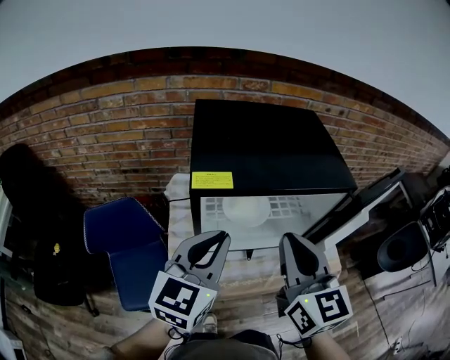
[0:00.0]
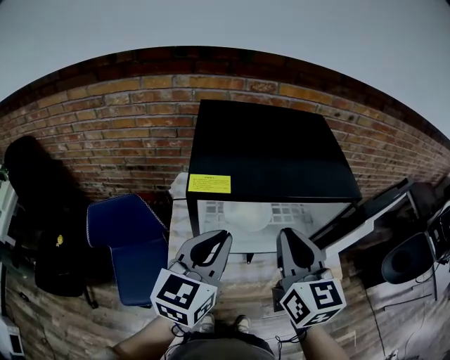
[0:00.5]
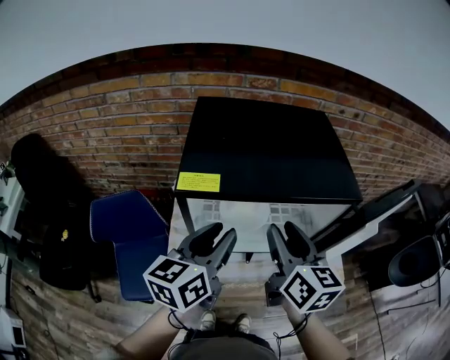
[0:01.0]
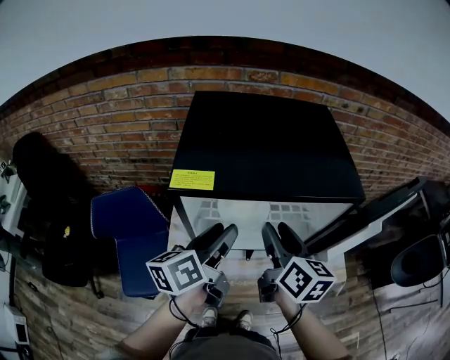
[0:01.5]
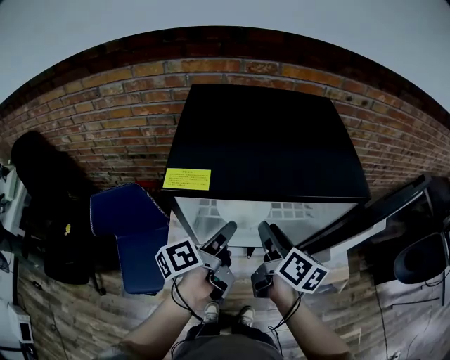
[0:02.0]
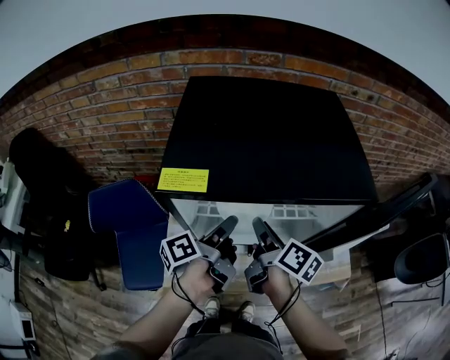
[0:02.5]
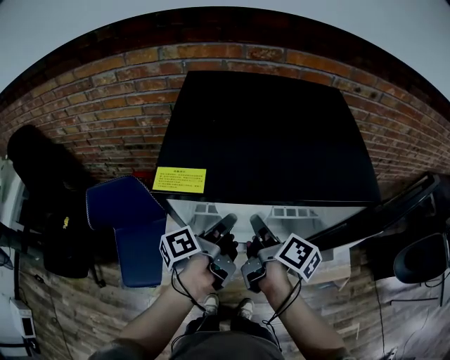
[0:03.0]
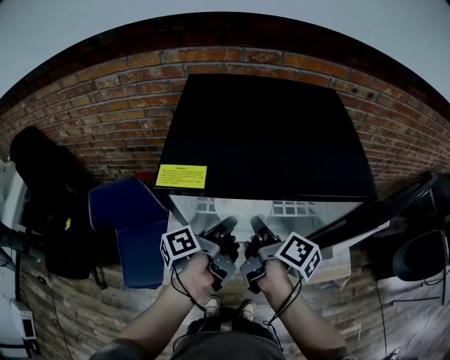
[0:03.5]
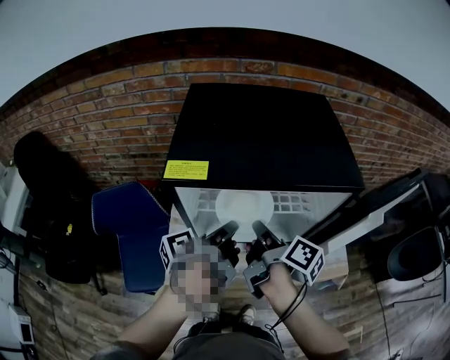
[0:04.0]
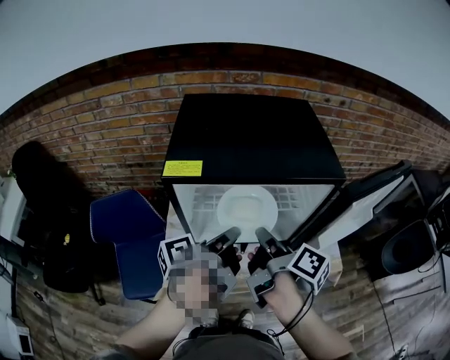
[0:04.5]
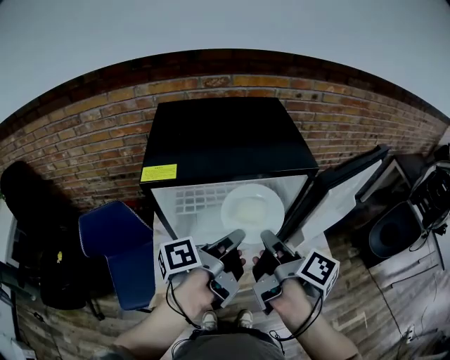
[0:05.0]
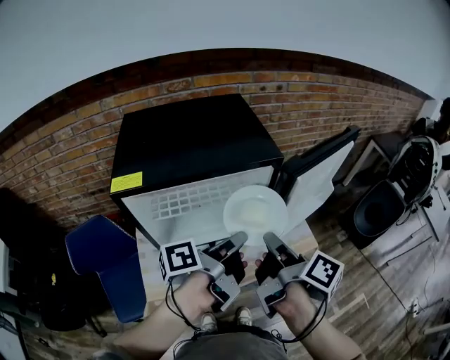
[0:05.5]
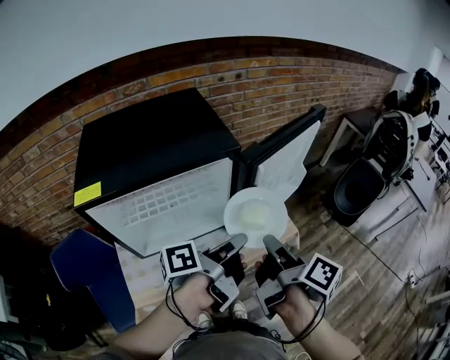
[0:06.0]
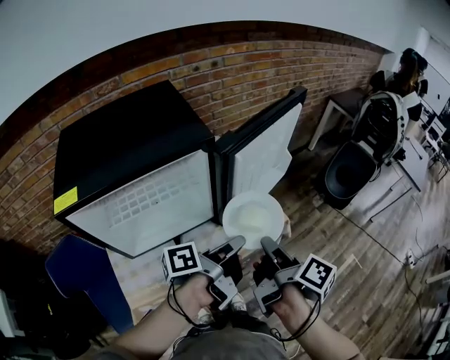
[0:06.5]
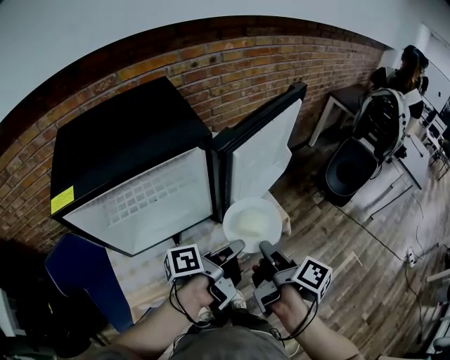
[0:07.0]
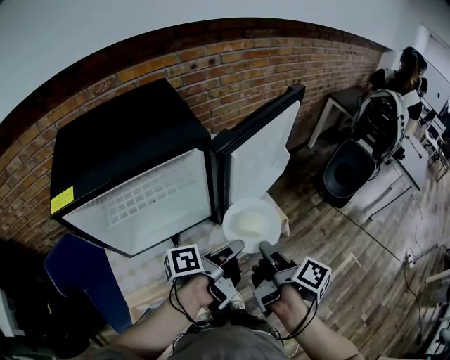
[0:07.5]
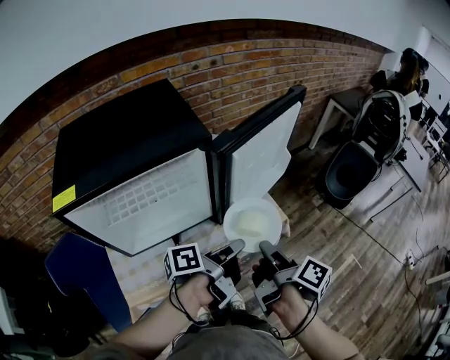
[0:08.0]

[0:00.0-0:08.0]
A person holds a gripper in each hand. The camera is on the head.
0:00.0 to 0:02.0: The two grippers go about 20 cm downward and forward. The left gripper twists some 70 degrees counterclockwise, seen from behind, and opens. Meanwhile the right gripper rotates around the line of its fingers by roughly 50 degrees, clockwise from behind, and opens.
0:02.0 to 0:04.0: The right gripper changes its angle by about 30 degrees, and closes up. The left gripper closes its fingers.
0:04.0 to 0:06.0: The right gripper shifts by roughly 30 cm, and swivels approximately 30 degrees, while the left gripper ends up some 25 cm from where it was, and turns by some 30 degrees.
0:06.0 to 0:08.0: Both grippers move downward and to the right, roughly 10 cm.

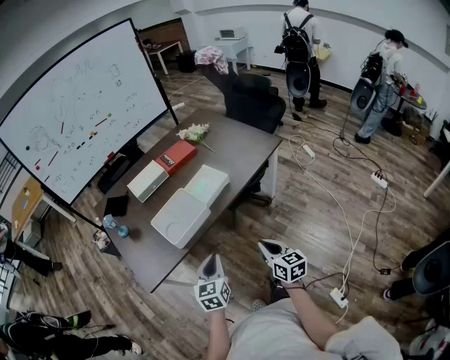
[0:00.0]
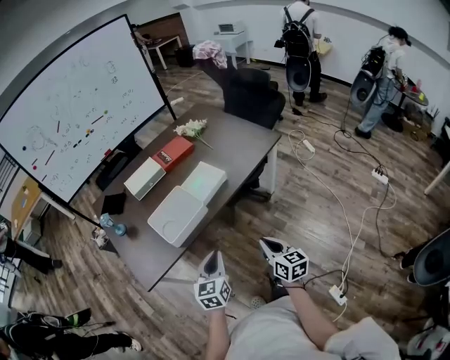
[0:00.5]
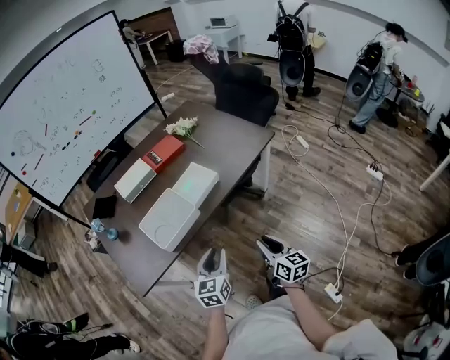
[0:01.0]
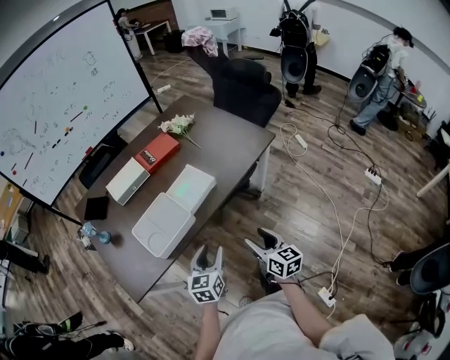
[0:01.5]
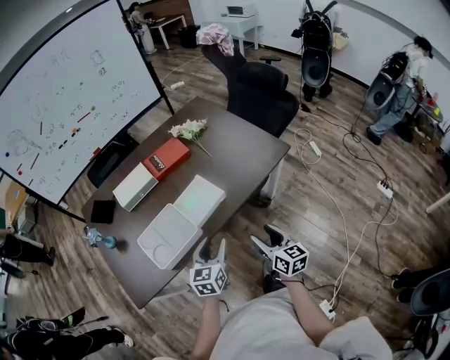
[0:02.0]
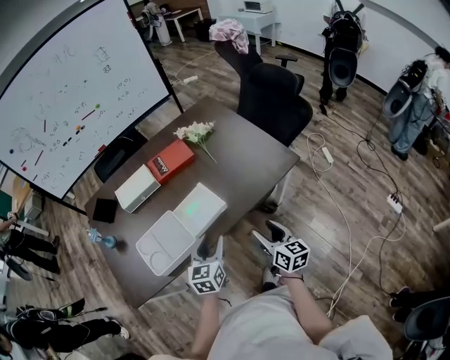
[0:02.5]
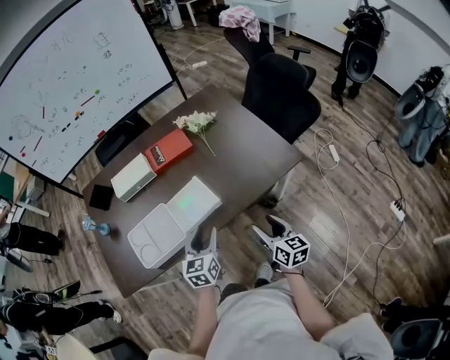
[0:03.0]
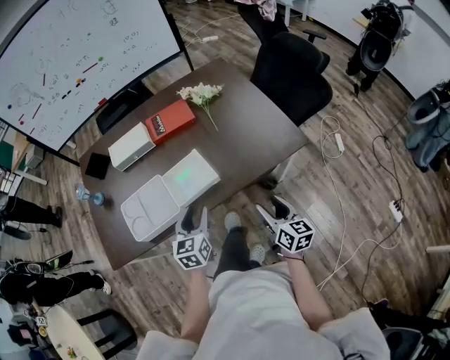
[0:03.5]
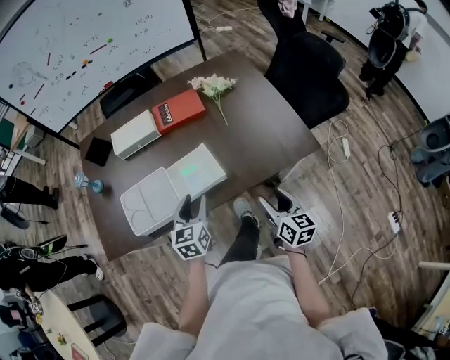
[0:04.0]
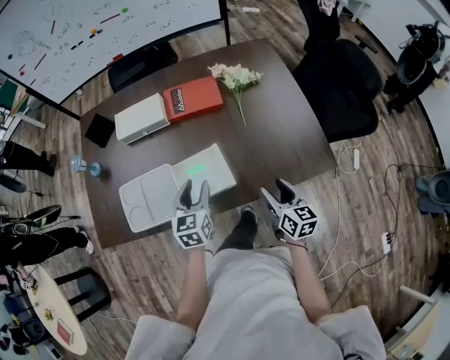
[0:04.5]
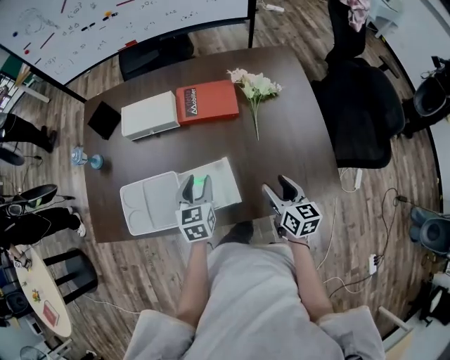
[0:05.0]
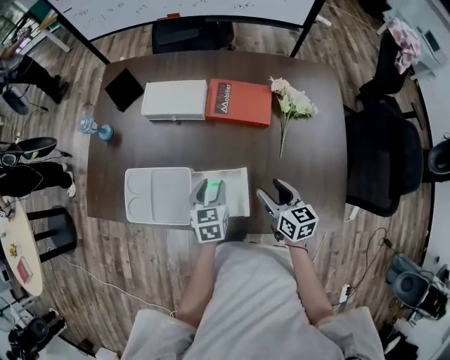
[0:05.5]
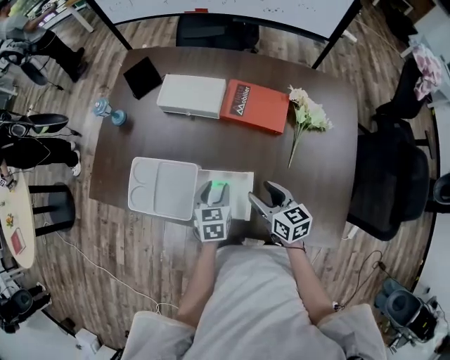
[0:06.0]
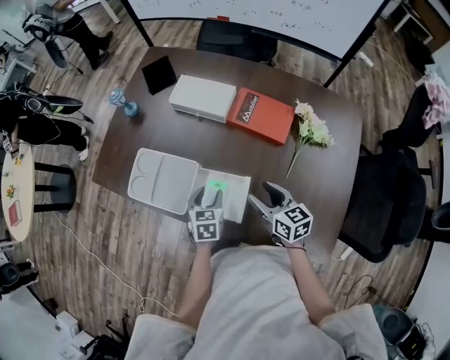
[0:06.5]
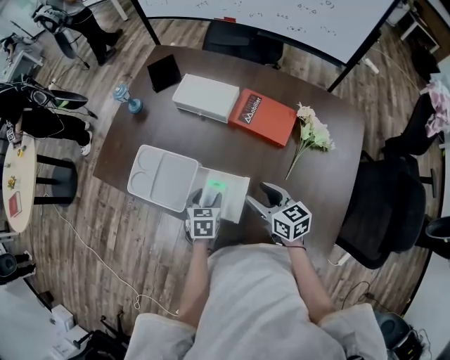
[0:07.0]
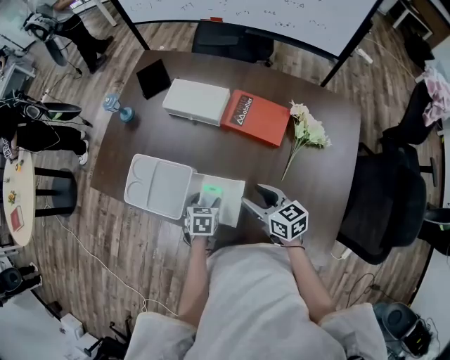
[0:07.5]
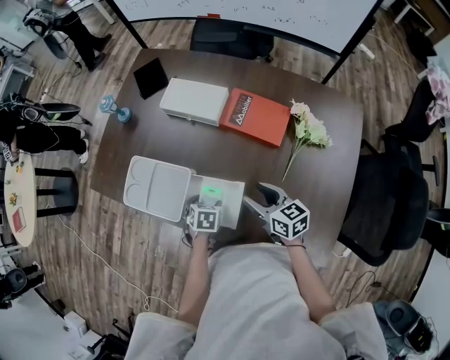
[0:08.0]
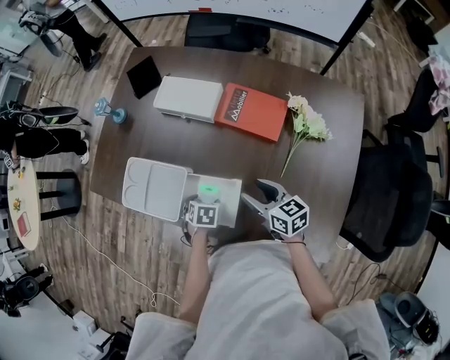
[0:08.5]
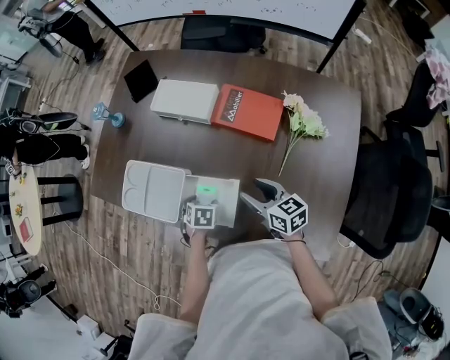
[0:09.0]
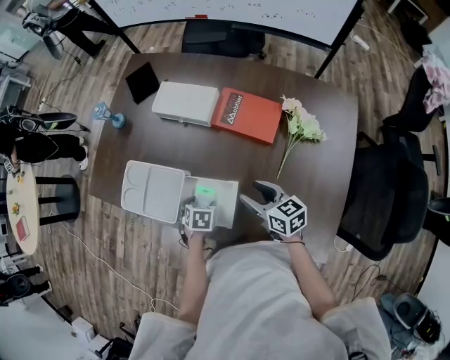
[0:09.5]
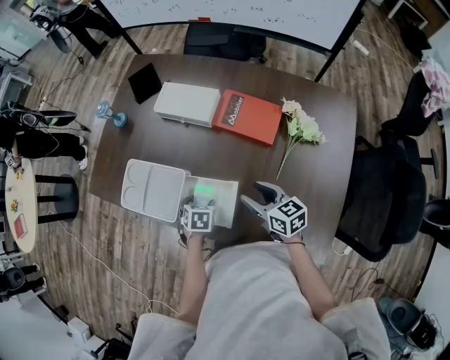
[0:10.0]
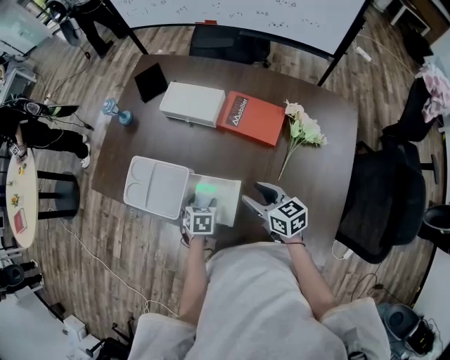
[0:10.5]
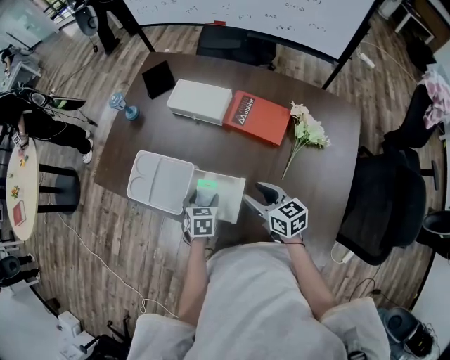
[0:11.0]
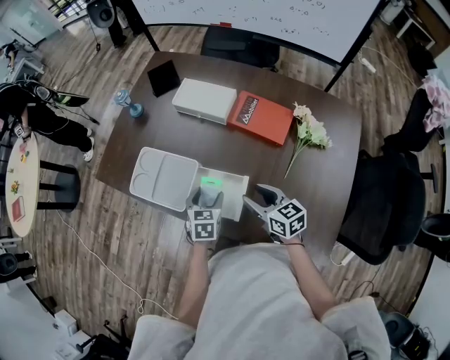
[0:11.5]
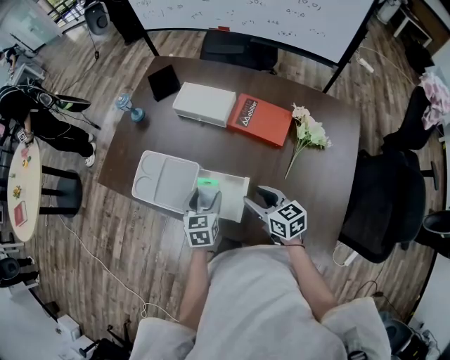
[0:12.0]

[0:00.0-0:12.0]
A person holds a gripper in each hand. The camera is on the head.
0:00.0 to 0:02.0: The grippers both shift forward and to the right by approximately 25 cm. The left gripper opens its fingers; the right gripper opens.
0:02.0 to 0:04.0: The left gripper travels forward by approximately 15 cm, and turns by roughly 30 degrees. The right gripper goes about 20 cm forward and to the right.
0:04.0 to 0:06.0: The left gripper shifts by approximately 20 cm, and rotates approximately 30 degrees, while the right gripper changes place by about 30 cm, and rotates roughly 50 degrees.
0:06.0 to 0:08.0: The left gripper shifts approximately 5 cm downward, swivels approximately 30 degrees, and opens.
0:08.0 to 0:10.0: The grippers stay close to where they were, moving slightly.
0:10.0 to 0:12.0: The right gripper moves about 5 cm; the left gripper is displaced upward by about 10 cm, and angles its fingers upward, by about 30 degrees.

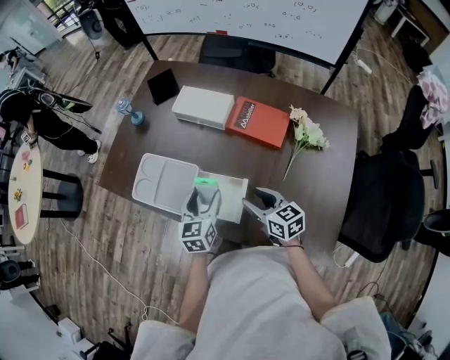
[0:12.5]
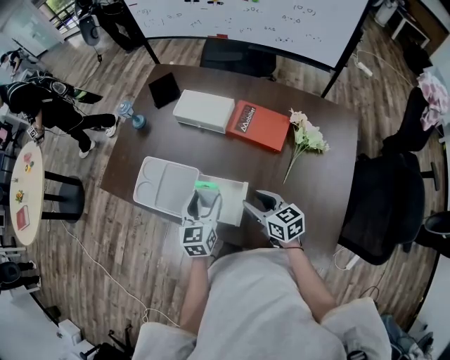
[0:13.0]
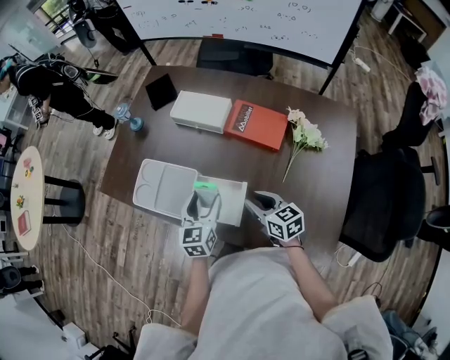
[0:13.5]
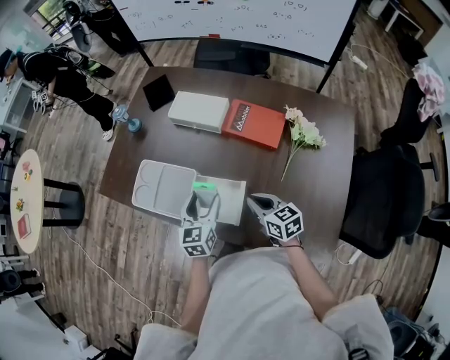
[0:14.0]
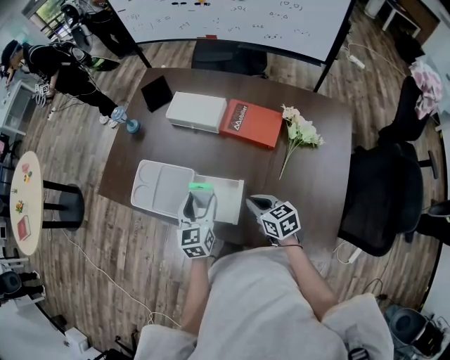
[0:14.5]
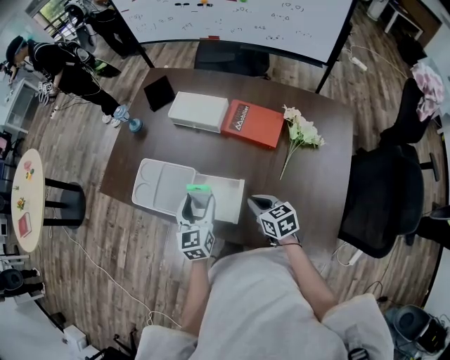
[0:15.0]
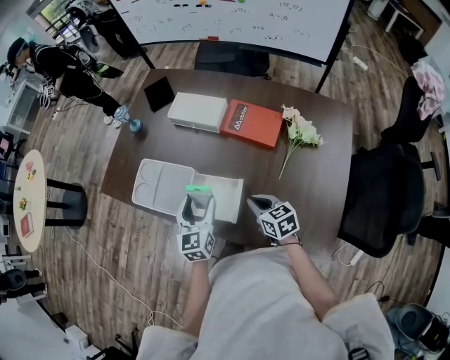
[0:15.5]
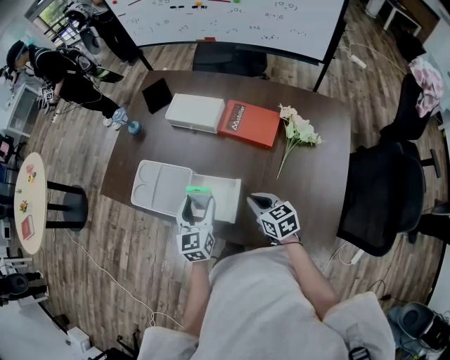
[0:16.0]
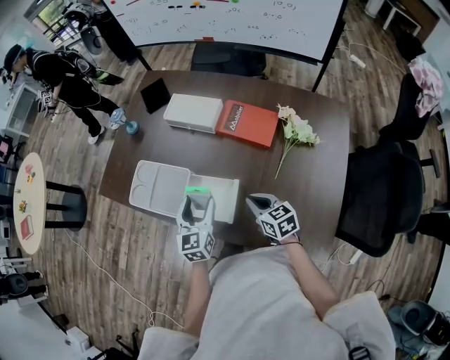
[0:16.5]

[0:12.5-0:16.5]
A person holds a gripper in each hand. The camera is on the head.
0:12.5 to 0:14.5: The right gripper closes its fingers.
0:14.5 to 0:16.5: The grippers make only small movements.

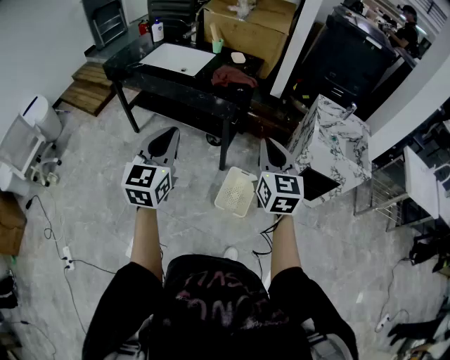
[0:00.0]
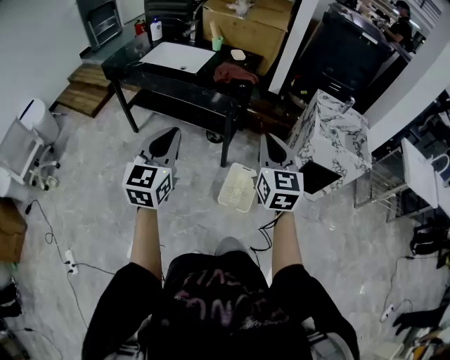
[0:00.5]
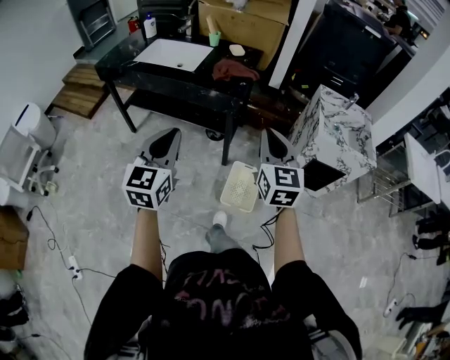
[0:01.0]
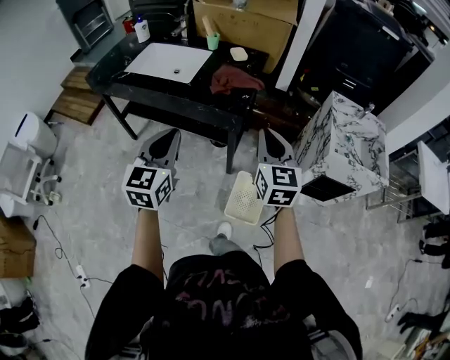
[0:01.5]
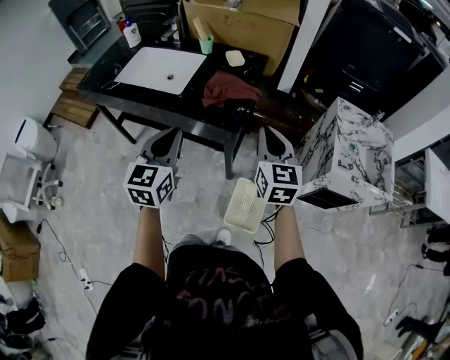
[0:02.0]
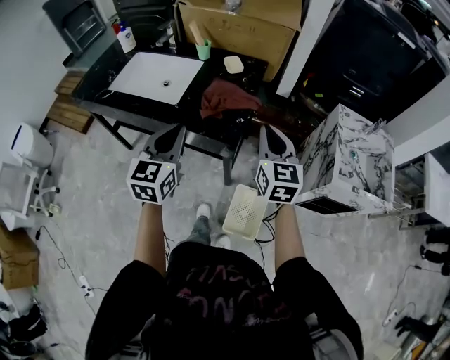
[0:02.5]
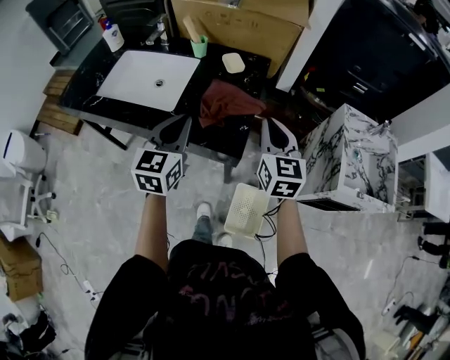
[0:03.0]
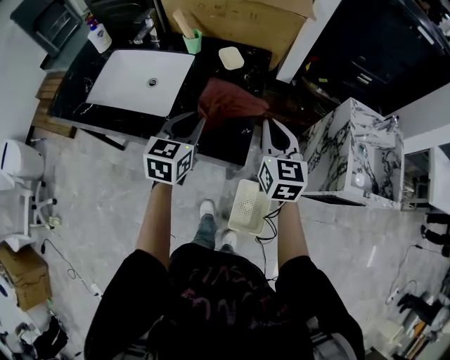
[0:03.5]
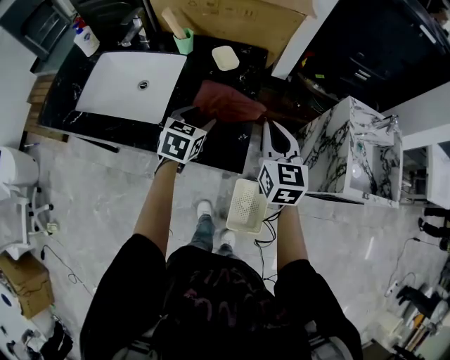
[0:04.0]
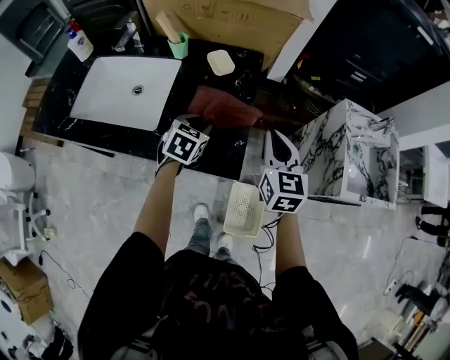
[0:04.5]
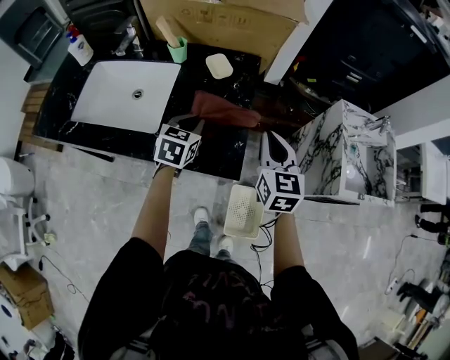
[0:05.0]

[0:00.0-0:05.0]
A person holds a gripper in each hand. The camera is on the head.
0:00.0 to 0:02.5: The two grippers go some 35 cm forward.
0:02.5 to 0:05.0: The left gripper travels forward and downward by about 30 cm, turns by roughly 30 degrees, and opens, then closes again, while the right gripper travels forward and downward by about 15 cm.
